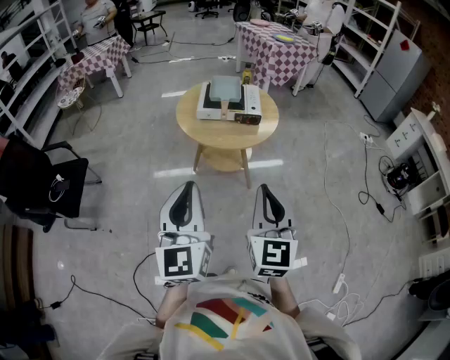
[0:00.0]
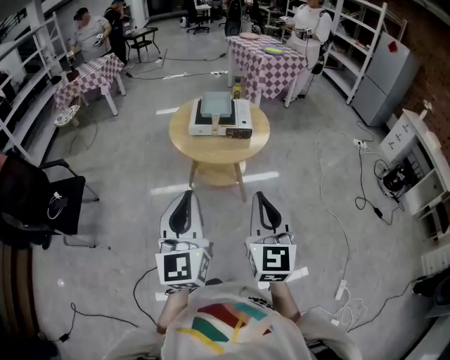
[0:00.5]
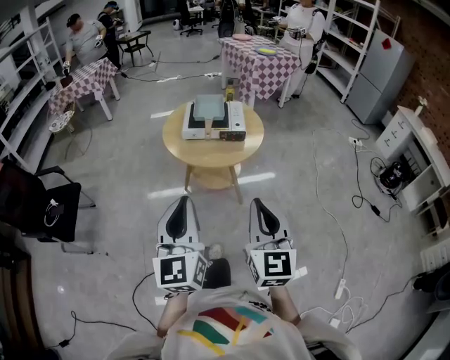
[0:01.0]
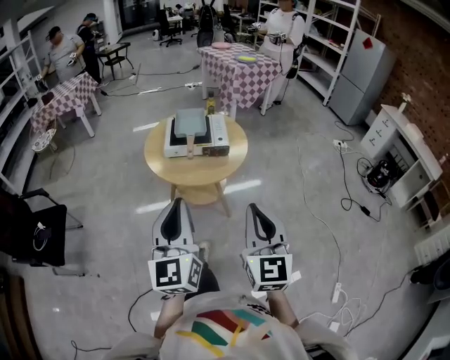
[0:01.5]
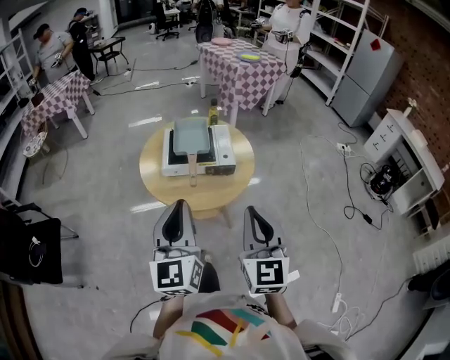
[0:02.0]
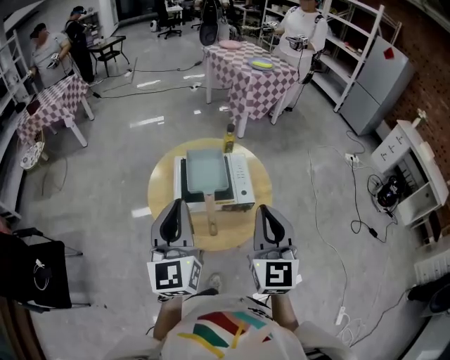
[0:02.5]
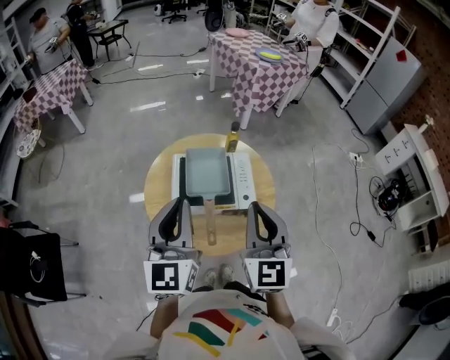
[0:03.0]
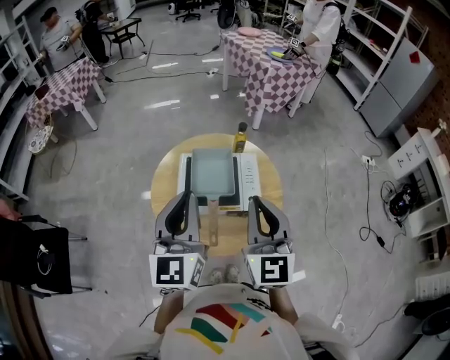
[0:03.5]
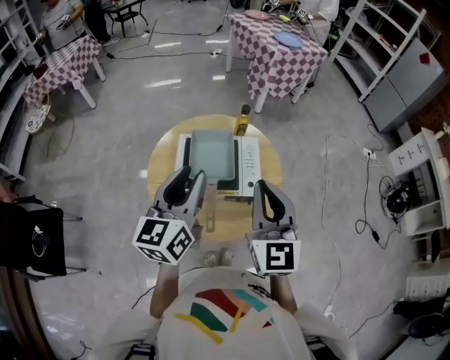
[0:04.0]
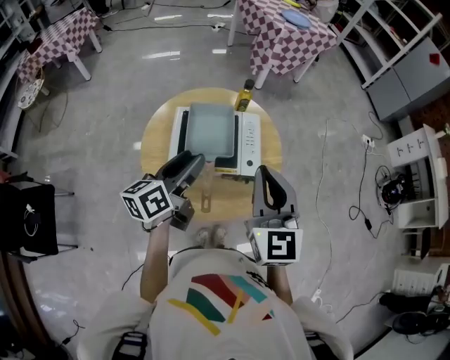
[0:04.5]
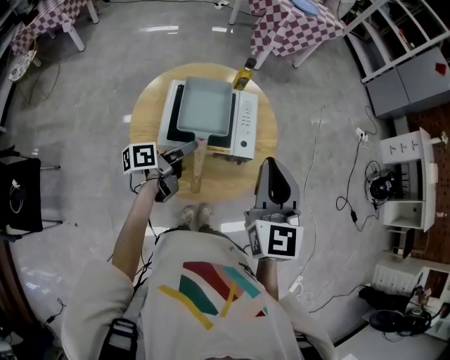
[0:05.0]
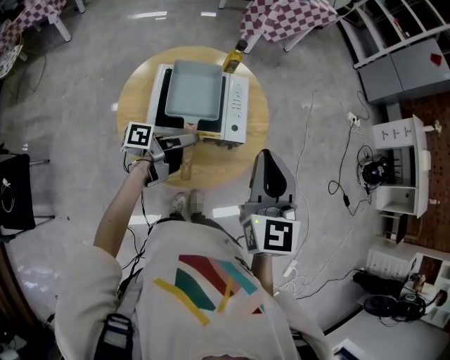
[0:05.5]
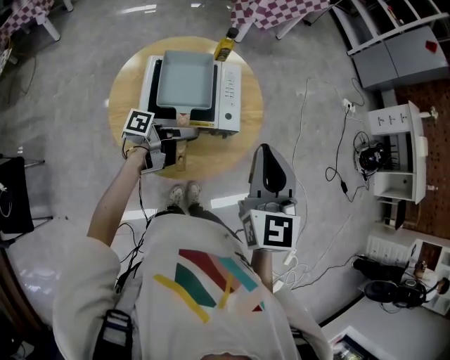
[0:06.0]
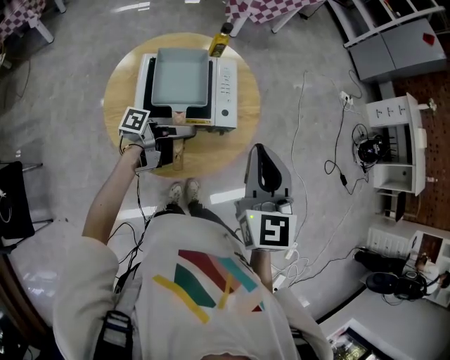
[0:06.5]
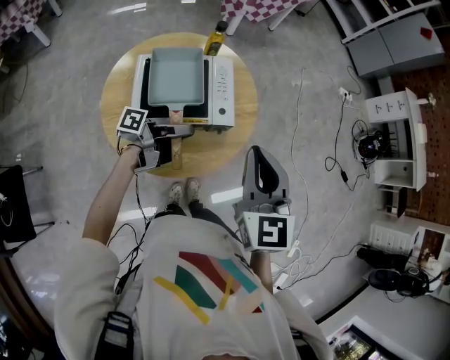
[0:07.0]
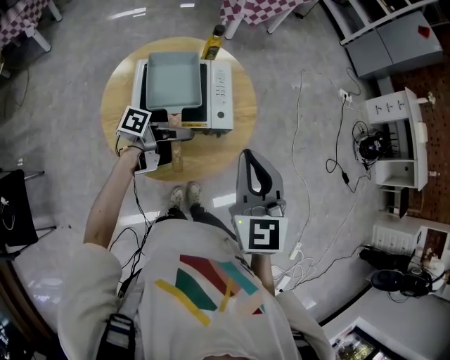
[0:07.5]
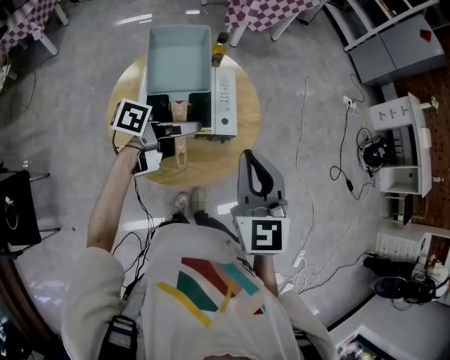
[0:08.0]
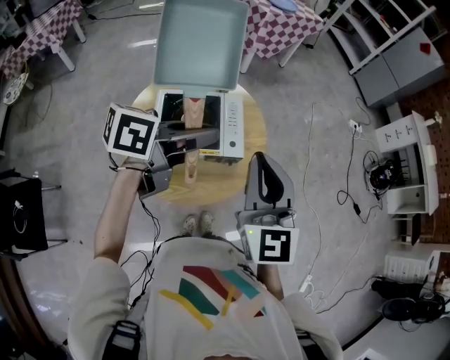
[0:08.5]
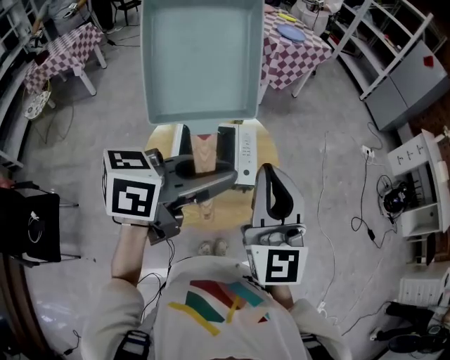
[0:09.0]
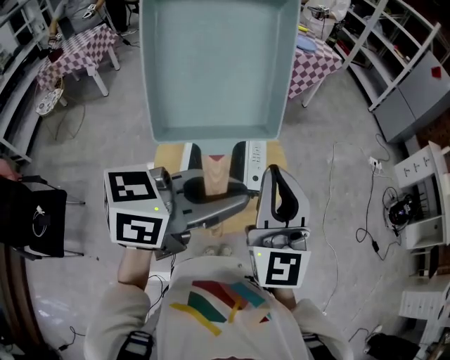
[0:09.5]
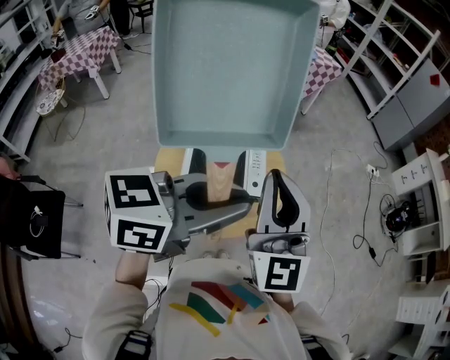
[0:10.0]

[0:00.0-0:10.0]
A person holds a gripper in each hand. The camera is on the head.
0:00.0 to 0:02.0: Both grippers move forward, some 20 cm.
0:02.0 to 0:04.0: Both grippers move forward, about 30 cm. The left gripper opens up.
0:04.0 to 0:06.0: The left gripper shifts about 25 cm downward, turns by some 90 degrees, and opens, then closes once more; the right gripper ends up about 5 cm from where it was.
0:06.0 to 0:08.0: The left gripper shifts approximately 10 cm upward, and rotates approximately 20 degrees.
0:08.0 to 0:10.0: The right gripper goes about 20 cm upward, and changes its angle by roughly 30 degrees, while the left gripper goes roughly 25 cm upward, and rolls clockwise, seen from behind, by roughly 50 degrees.

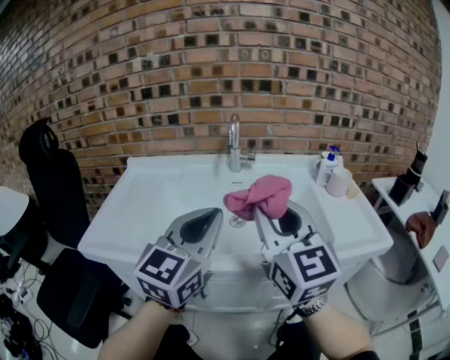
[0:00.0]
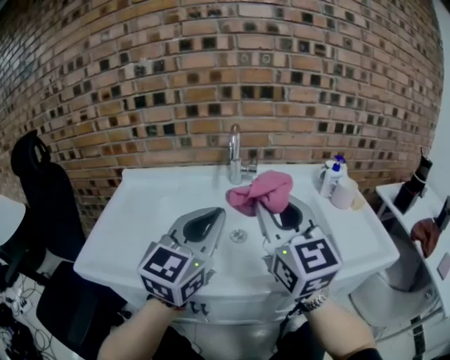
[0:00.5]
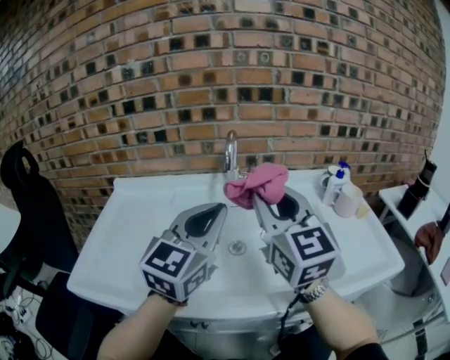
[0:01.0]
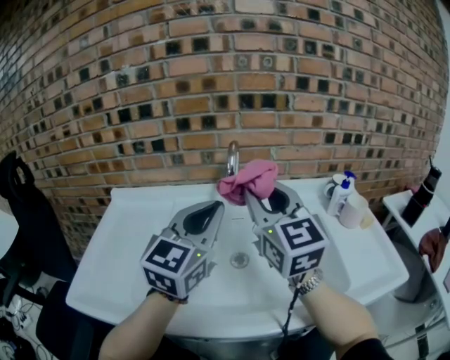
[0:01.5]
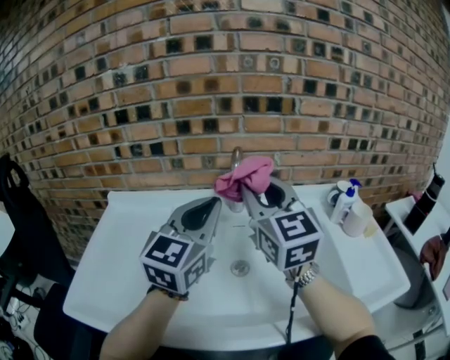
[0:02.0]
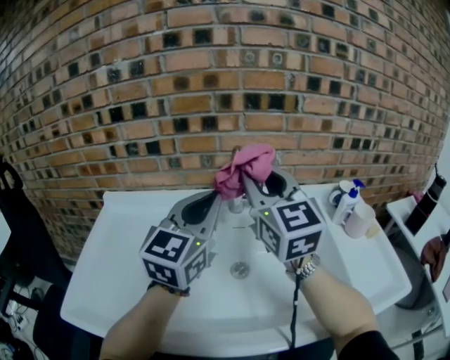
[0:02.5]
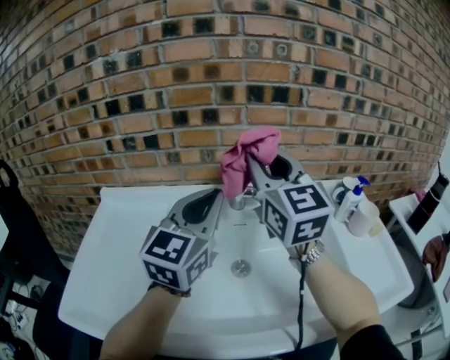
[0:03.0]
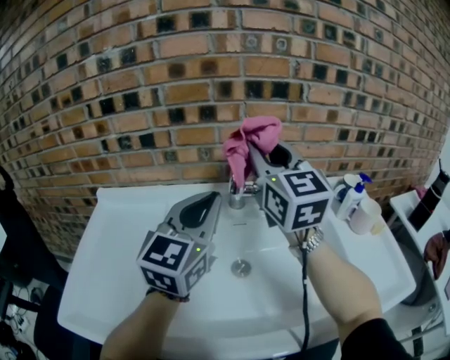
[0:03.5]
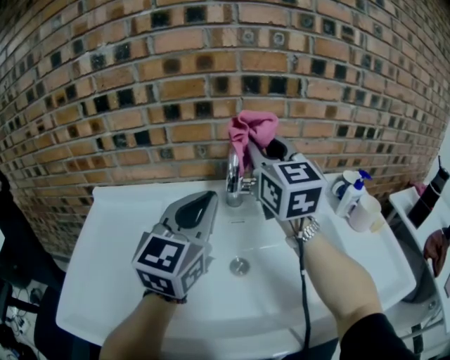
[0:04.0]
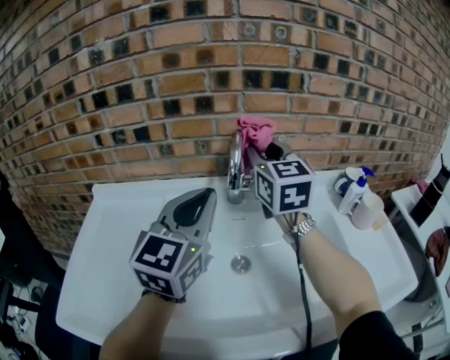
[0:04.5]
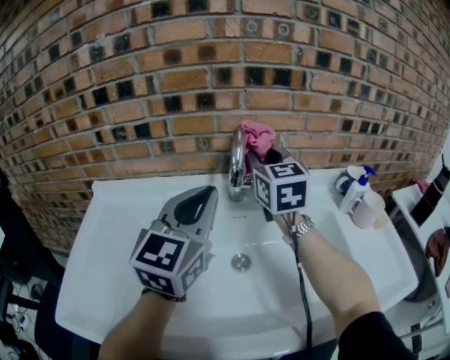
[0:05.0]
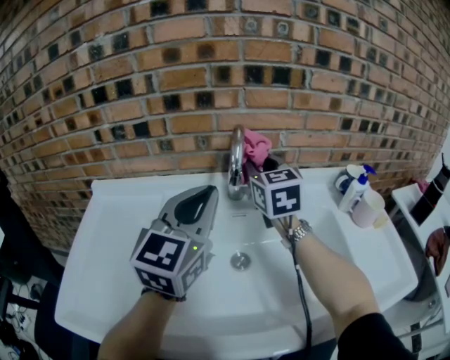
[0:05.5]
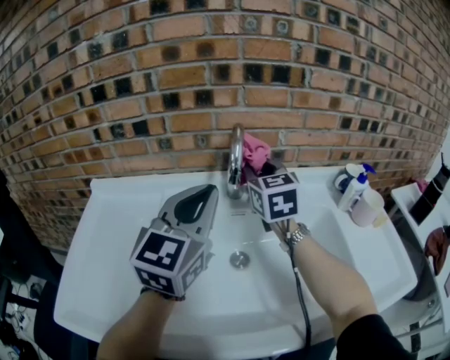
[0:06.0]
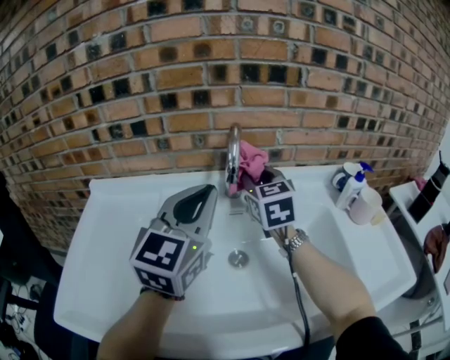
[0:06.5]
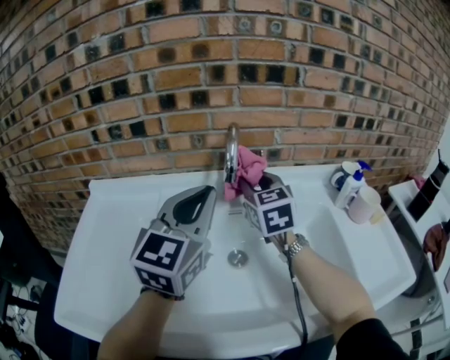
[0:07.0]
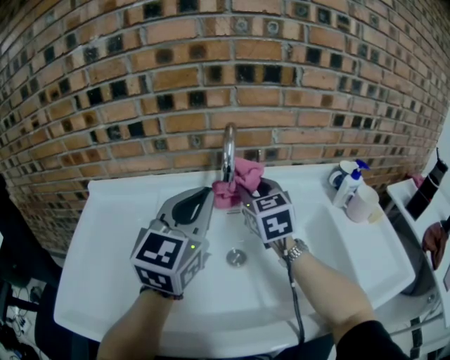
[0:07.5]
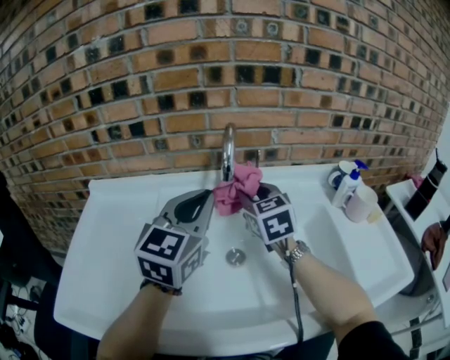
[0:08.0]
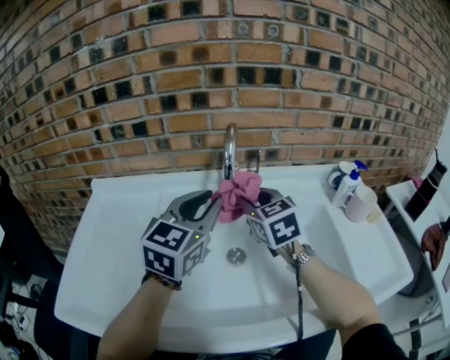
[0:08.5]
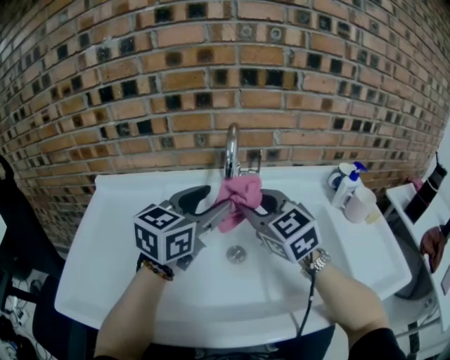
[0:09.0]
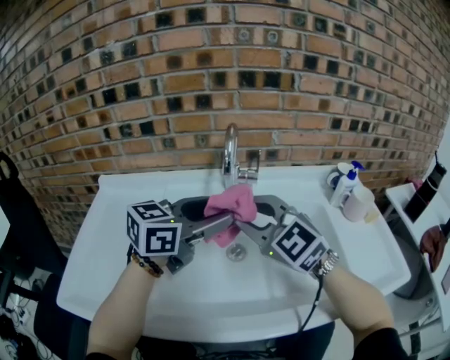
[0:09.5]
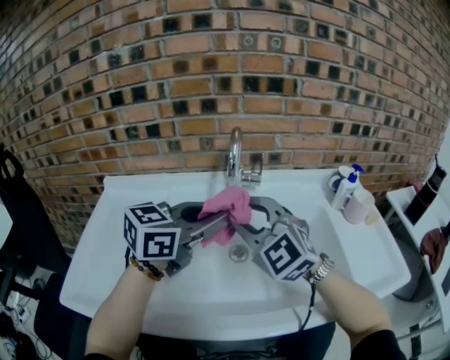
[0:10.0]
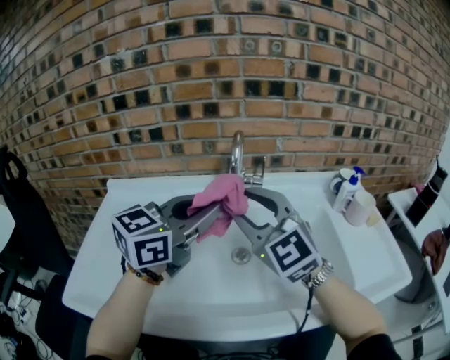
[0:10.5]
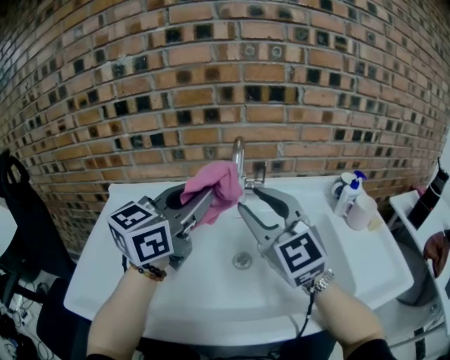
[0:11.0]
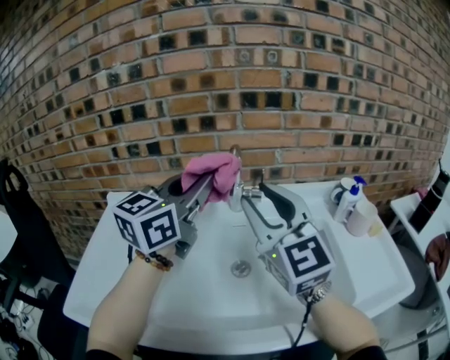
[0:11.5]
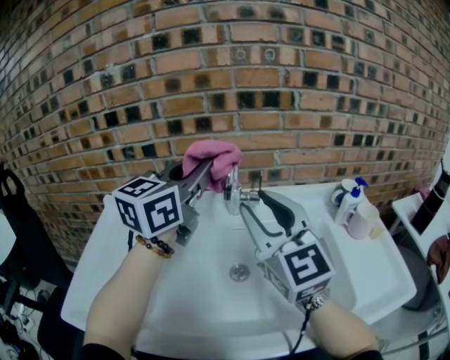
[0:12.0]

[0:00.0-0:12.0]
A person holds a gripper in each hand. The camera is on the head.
0:00.0 to 0:02.0: Both grippers move forward, about 25 cm.
0:02.0 to 0:04.0: The right gripper shifts about 10 cm forward.
0:04.0 to 0:06.0: The right gripper moves downward, about 15 cm.
0:06.0 to 0:08.0: The right gripper goes roughly 5 cm downward.
0:08.0 to 0:10.0: The right gripper goes roughly 15 cm backward, and swivels roughly 40 degrees. Meanwhile the left gripper travels backward by roughly 5 cm, rotates some 30 degrees, and opens, then closes again.
0:10.0 to 0:12.0: The left gripper goes approximately 15 cm upward and forward, and changes its angle by about 30 degrees, while the right gripper moves upward and to the right, some 10 cm, and rotates roughly 30 degrees.

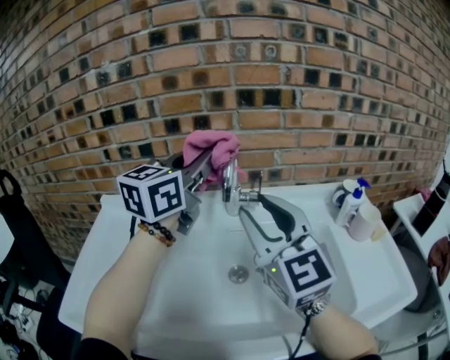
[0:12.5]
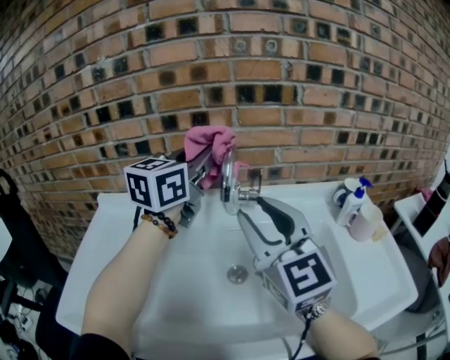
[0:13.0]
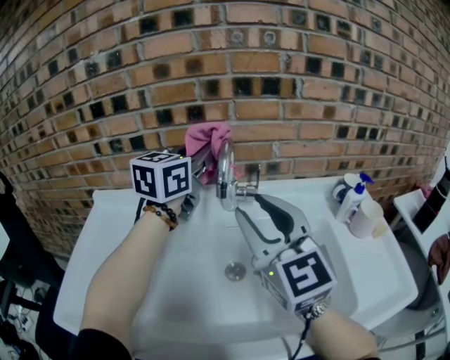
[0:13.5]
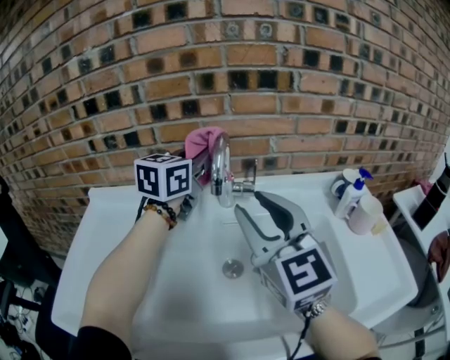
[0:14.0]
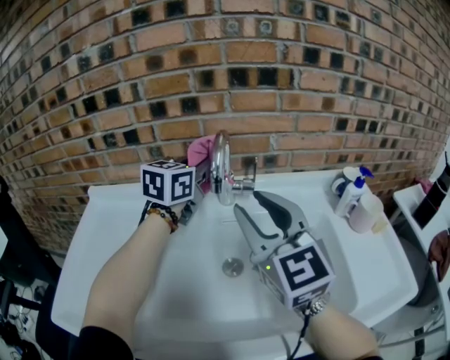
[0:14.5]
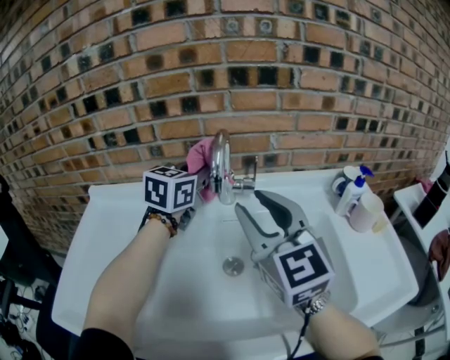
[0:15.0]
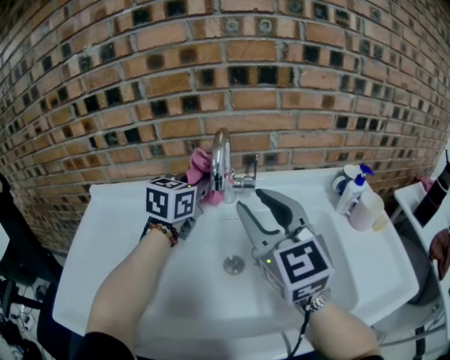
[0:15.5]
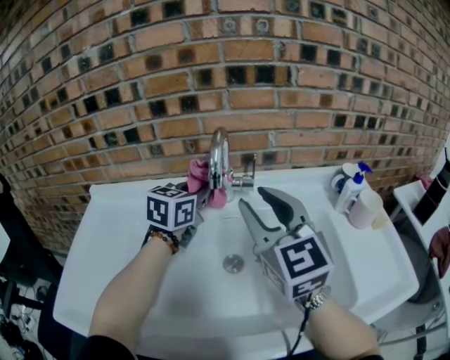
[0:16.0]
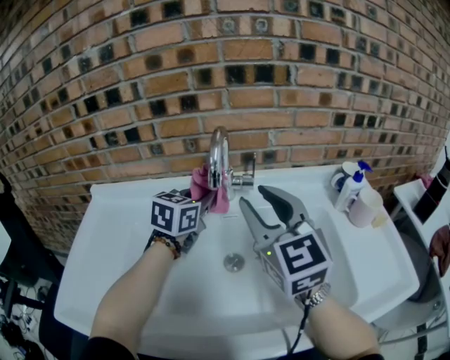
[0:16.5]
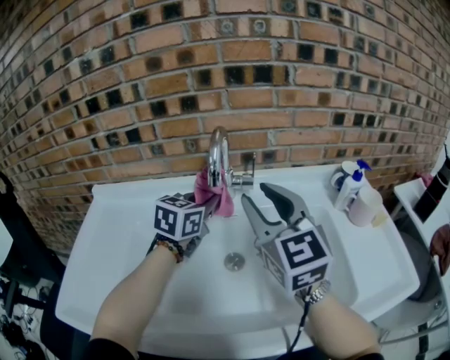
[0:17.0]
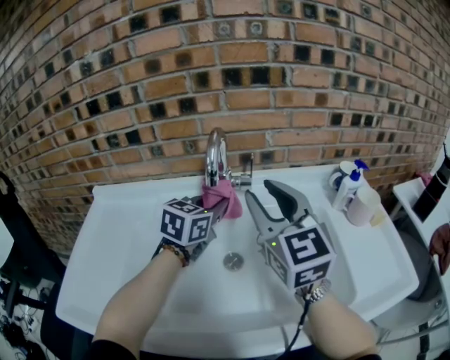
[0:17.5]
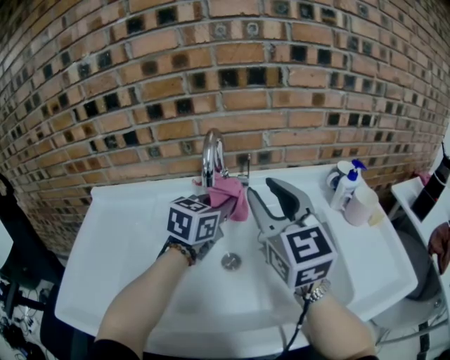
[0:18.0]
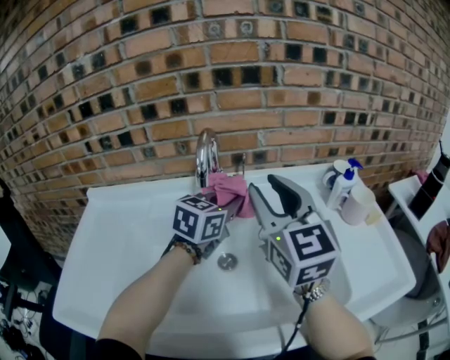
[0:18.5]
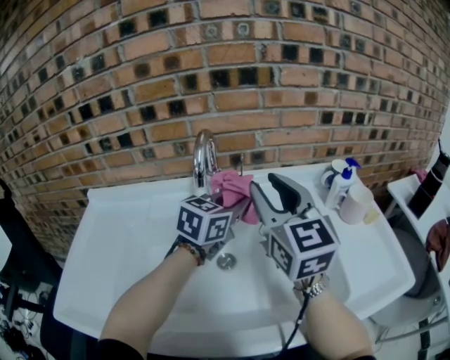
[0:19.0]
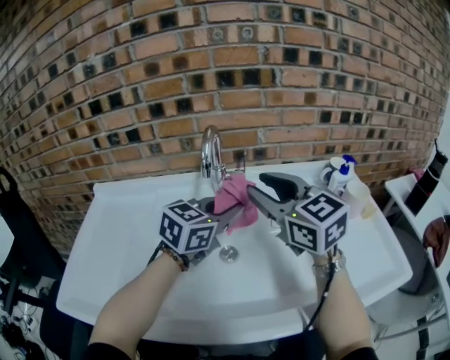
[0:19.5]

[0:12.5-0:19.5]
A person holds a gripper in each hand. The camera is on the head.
0:12.5 to 0:14.5: The left gripper travels downward and forward by about 15 cm.
0:14.5 to 0:16.0: The left gripper travels downward by some 5 cm.
0:16.0 to 0:17.5: The left gripper shifts by some 5 cm.
0:17.5 to 0:19.5: The left gripper goes about 10 cm backward and to the right.
